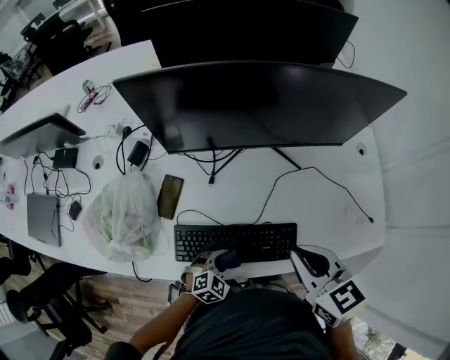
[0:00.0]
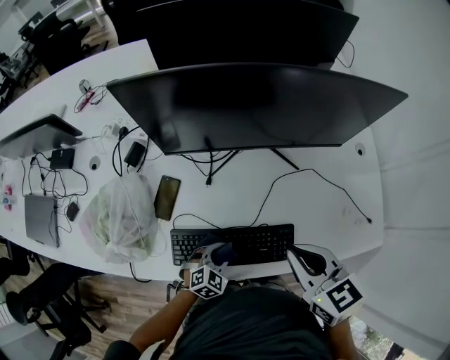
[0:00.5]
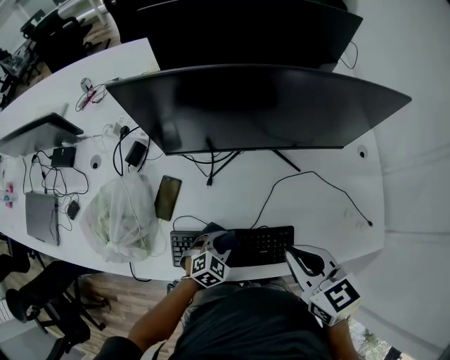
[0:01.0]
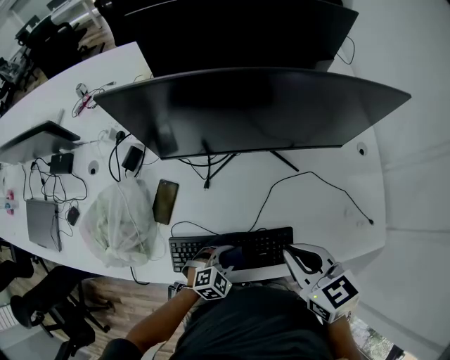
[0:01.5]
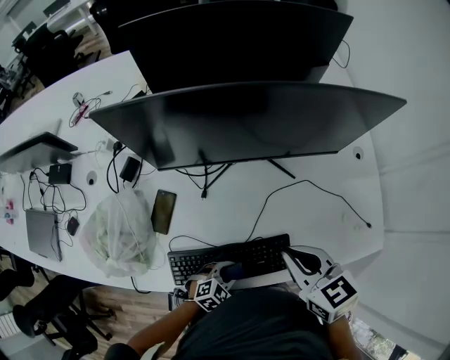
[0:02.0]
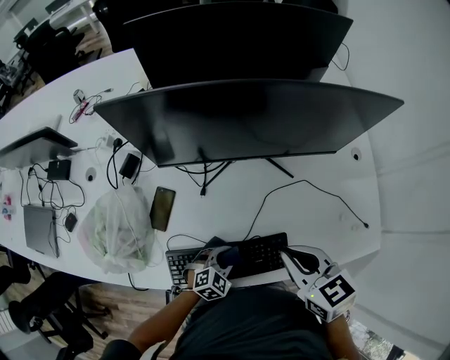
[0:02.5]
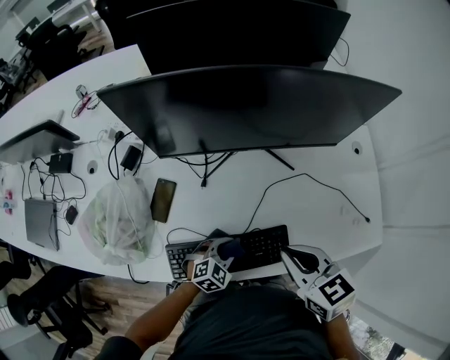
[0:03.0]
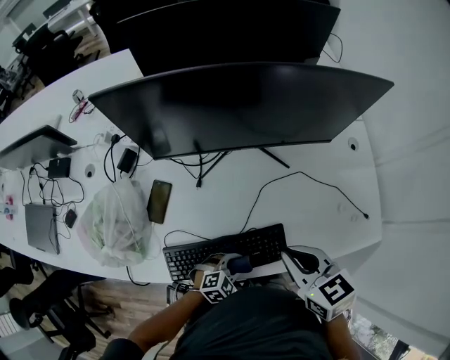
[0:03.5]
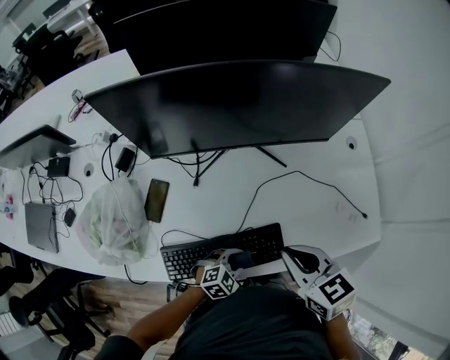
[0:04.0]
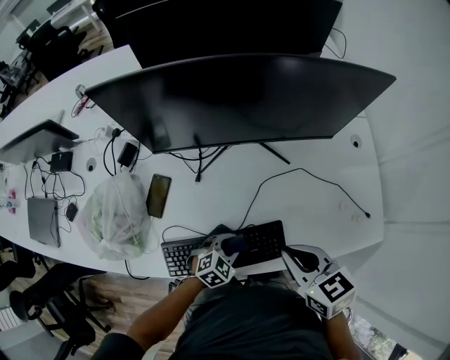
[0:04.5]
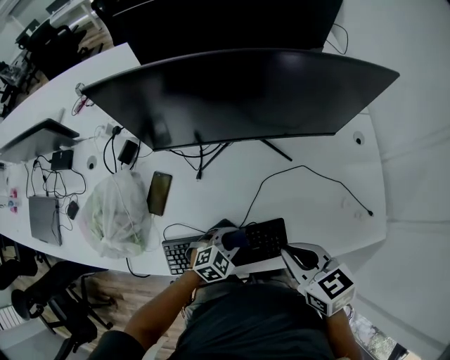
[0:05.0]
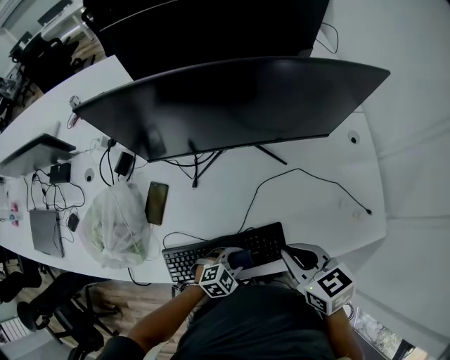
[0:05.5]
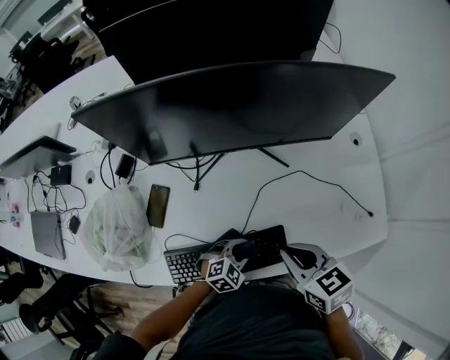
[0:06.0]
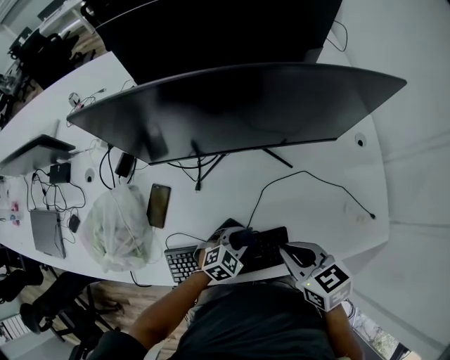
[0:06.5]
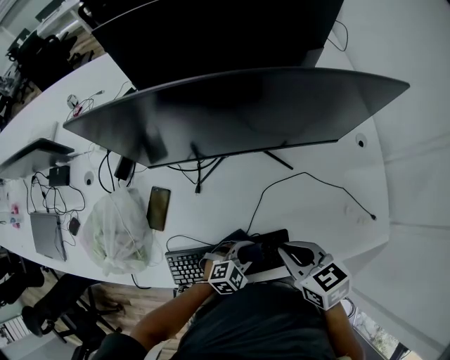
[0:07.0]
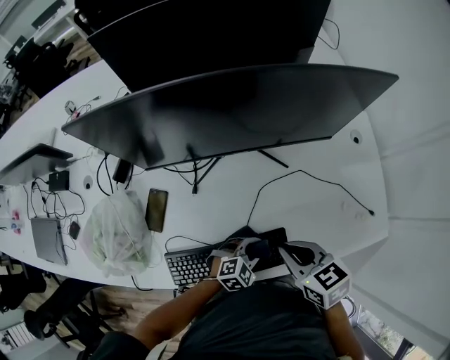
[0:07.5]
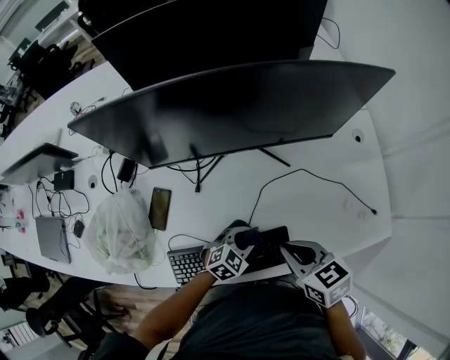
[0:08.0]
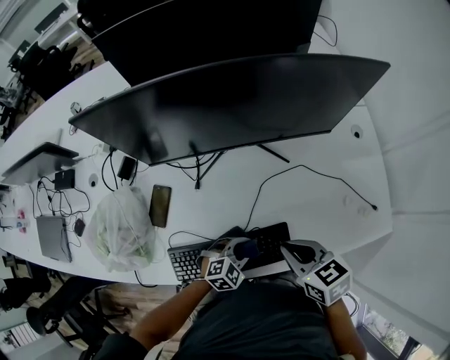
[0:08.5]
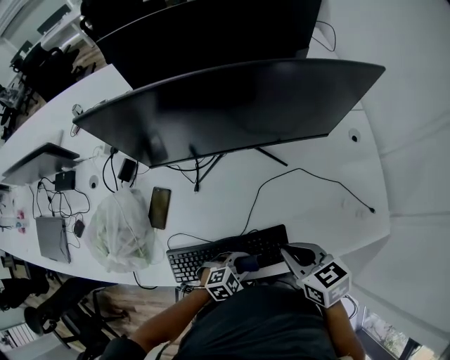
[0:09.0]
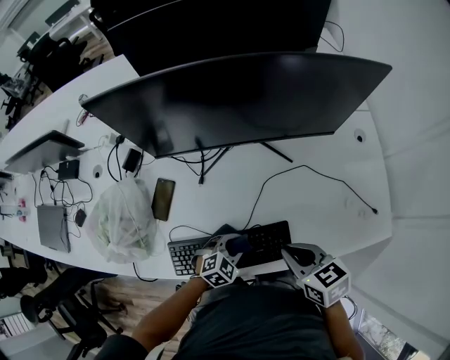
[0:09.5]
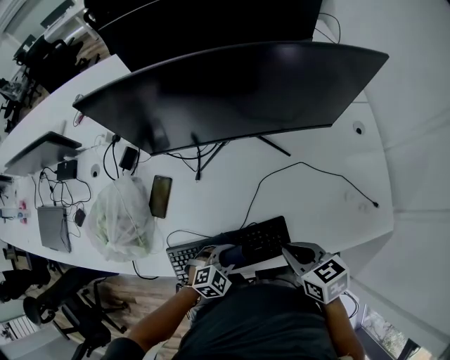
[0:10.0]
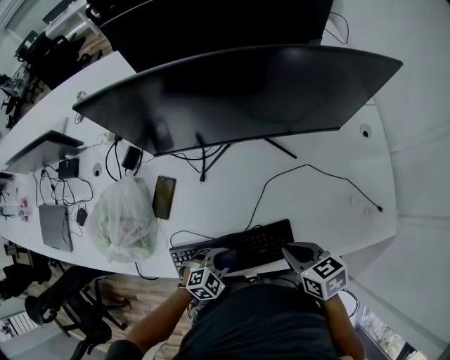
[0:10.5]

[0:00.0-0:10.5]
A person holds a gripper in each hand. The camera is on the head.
0:00.0 to 0:02.0: The left gripper goes forward and returns, about 5 cm each way.
0:02.0 to 0:04.0: The right gripper ends up roughly 5 cm from where it was. The left gripper shifts some 5 cm to the right.
0:04.0 to 0:06.5: The left gripper swings forward and backward, roughly 10 cm each way, with 2 reversals. The right gripper changes place by approximately 5 cm.
0:06.5 to 0:08.5: The left gripper moves some 5 cm.
0:08.5 to 0:10.5: The right gripper shifts by some 5 cm. The left gripper changes place by approximately 10 cm.

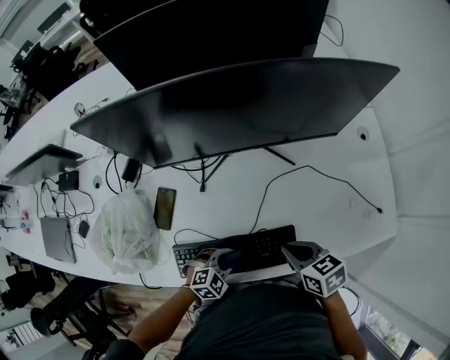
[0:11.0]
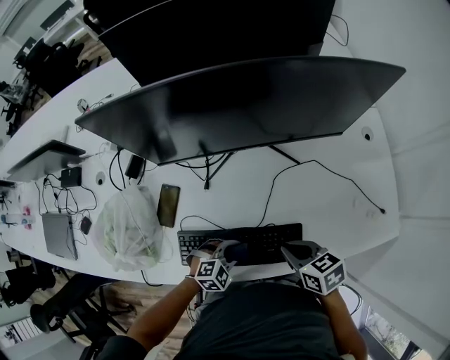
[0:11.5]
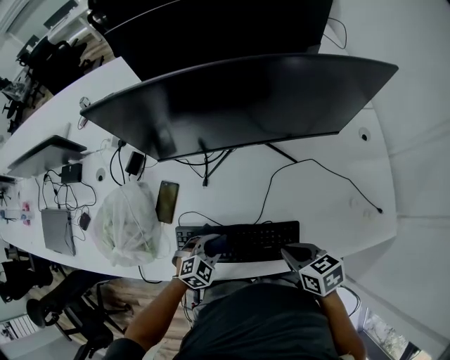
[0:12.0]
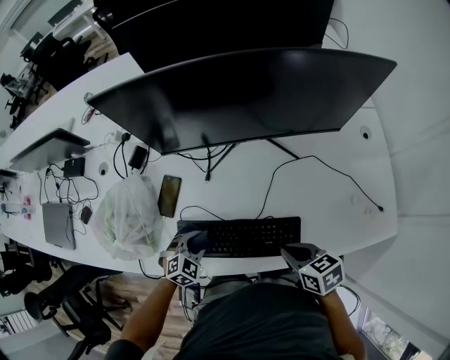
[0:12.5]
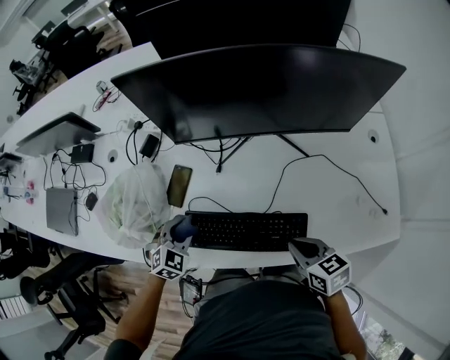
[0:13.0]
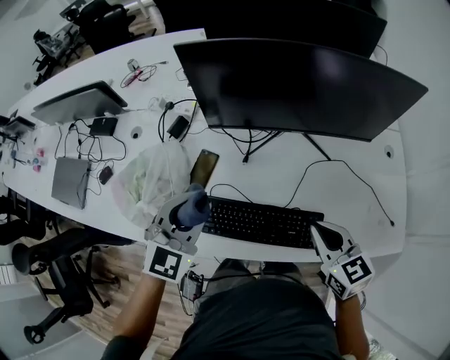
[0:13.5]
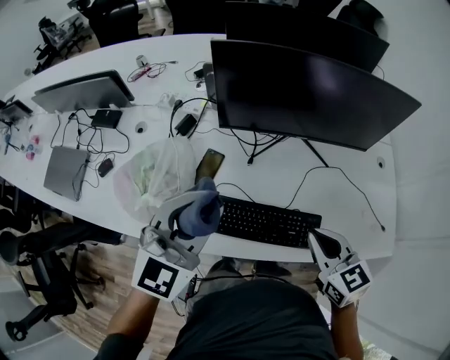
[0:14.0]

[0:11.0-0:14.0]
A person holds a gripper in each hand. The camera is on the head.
0:11.0 to 0:12.5: The left gripper changes place by approximately 10 cm, and rotates some 20 degrees.
0:12.5 to 0:14.0: The left gripper goes approximately 35 cm upward, and angles its fingers upward, by roughly 40 degrees, while the right gripper is displaced upward and to the left by roughly 15 cm, and swivels some 30 degrees.

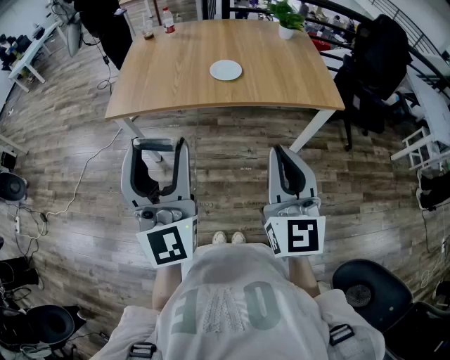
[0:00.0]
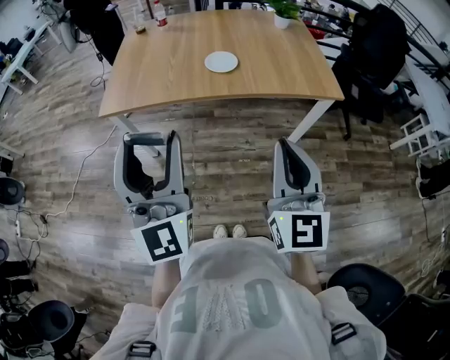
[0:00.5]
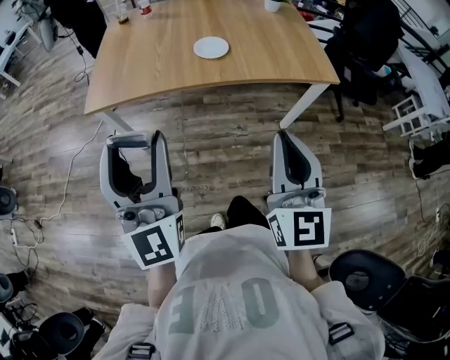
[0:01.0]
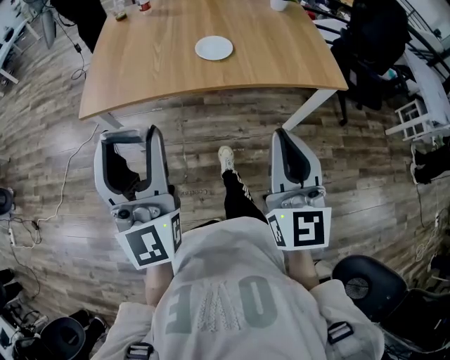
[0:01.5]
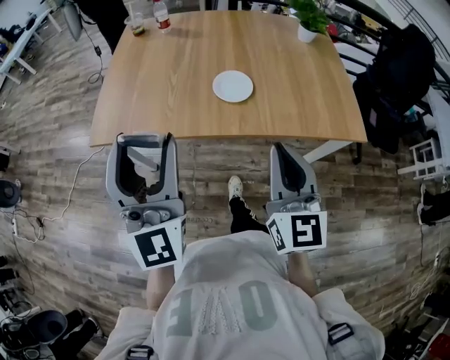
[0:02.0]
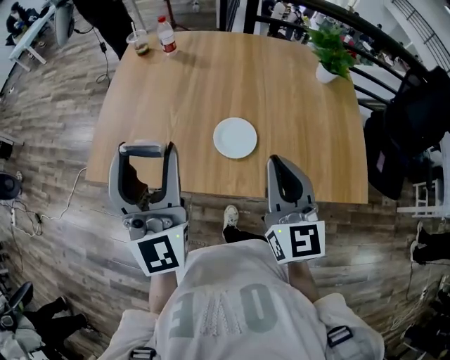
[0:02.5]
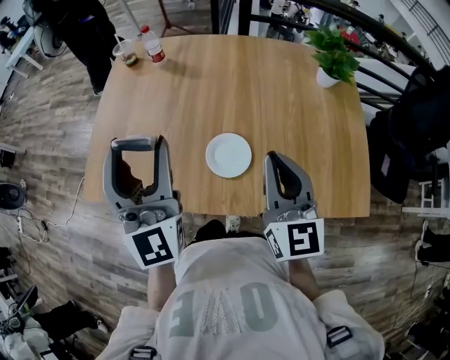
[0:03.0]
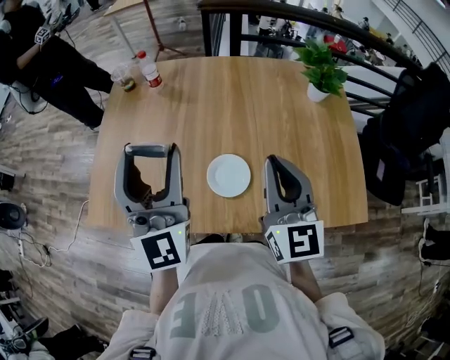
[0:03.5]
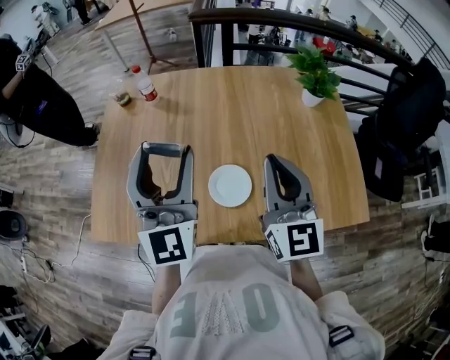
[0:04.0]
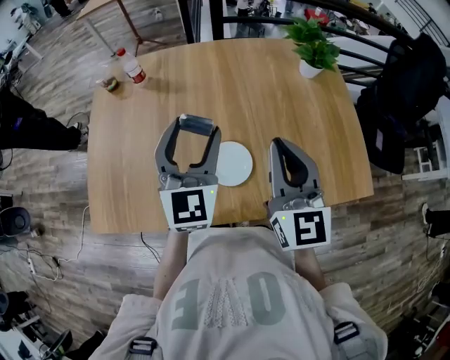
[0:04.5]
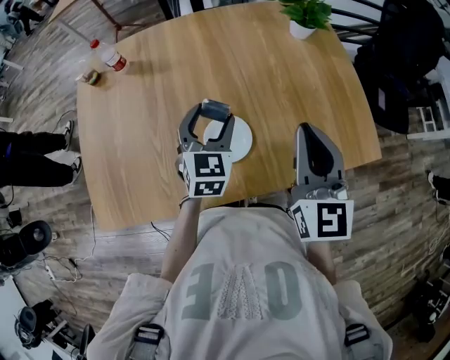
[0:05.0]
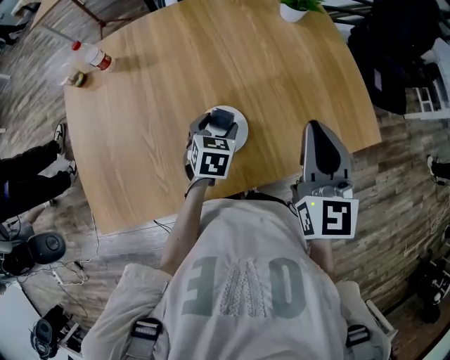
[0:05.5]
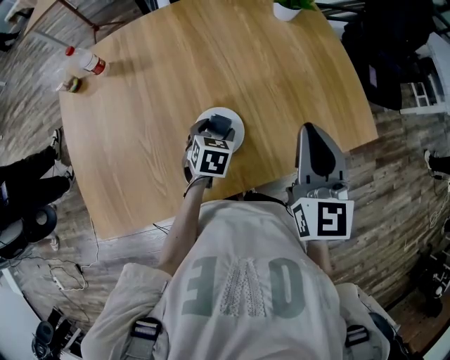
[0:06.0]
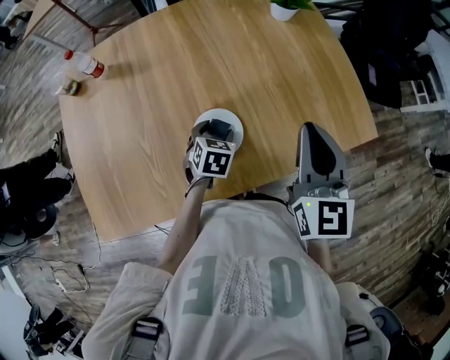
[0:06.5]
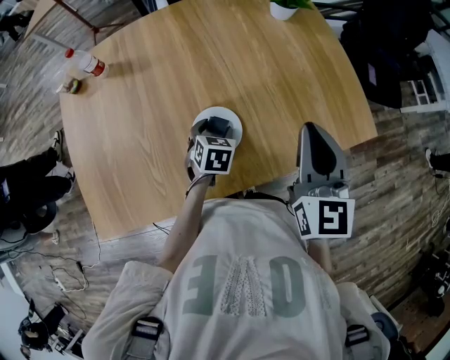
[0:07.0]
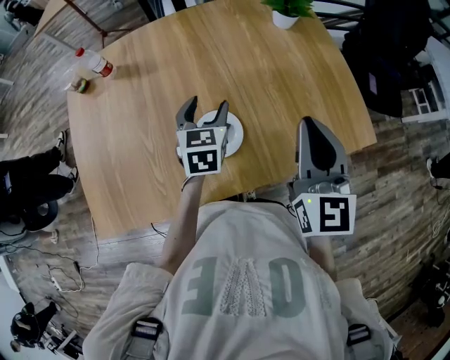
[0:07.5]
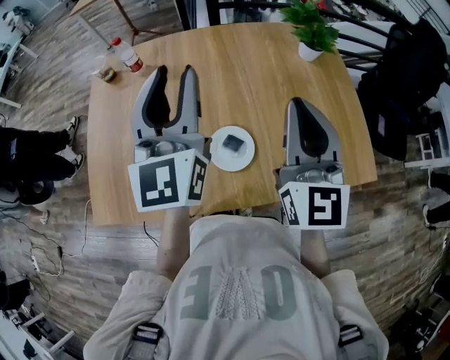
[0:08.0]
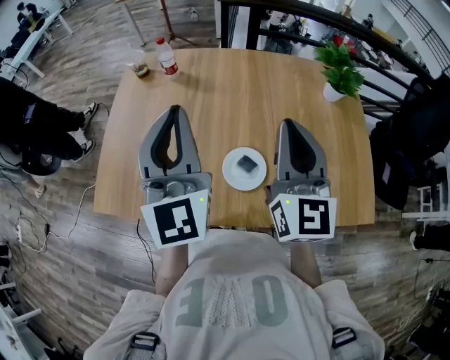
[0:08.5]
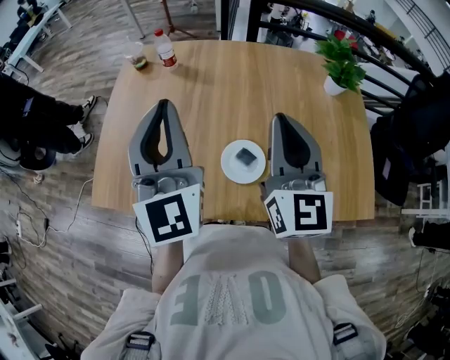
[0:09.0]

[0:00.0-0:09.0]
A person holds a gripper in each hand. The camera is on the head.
0:00.0 to 0:02.0: The two grippers go roughly 25 cm forward.
0:02.0 to 0:04.5: Both grippers move forward, some 35 cm. The left gripper turns by approximately 30 degrees.
0:04.5 to 0:07.0: The right gripper moves to the right, some 10 cm, and swivels some 20 degrees. The left gripper is displaced downward by some 30 cm, and tilts its fingers approximately 50 degrees downward.
0:07.0 to 0:09.0: The right gripper changes place by some 20 cm, and rotates approximately 30 degrees. Meanwhile the left gripper goes roughly 40 cm upward, tips its fingers upward by some 70 degrees, and closes its fingers.

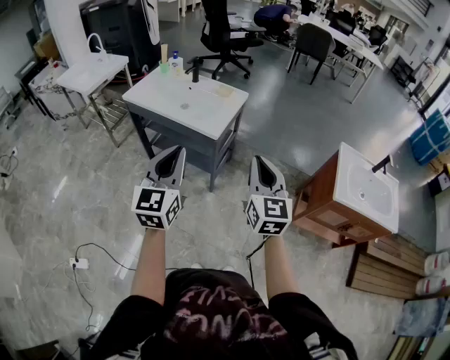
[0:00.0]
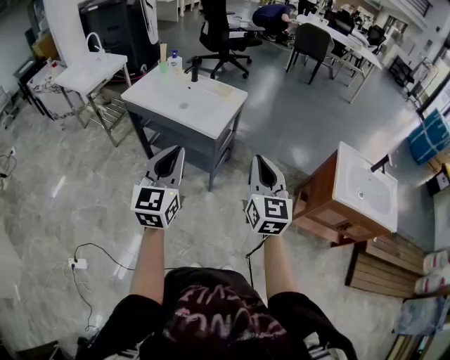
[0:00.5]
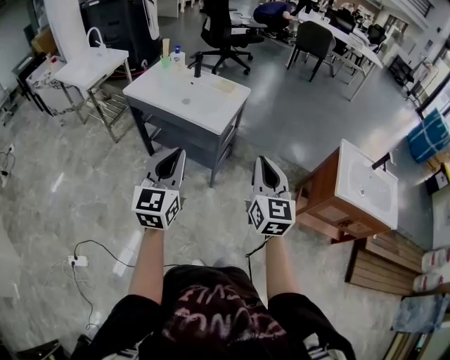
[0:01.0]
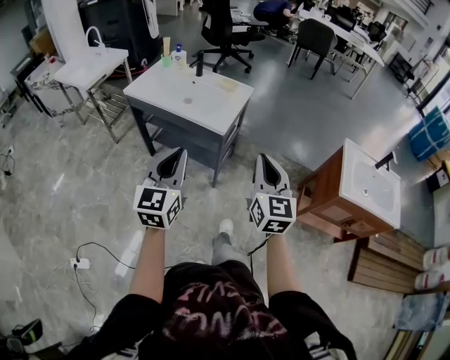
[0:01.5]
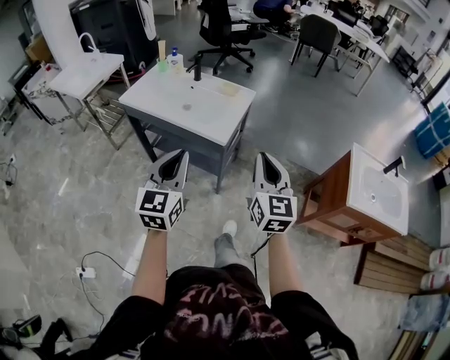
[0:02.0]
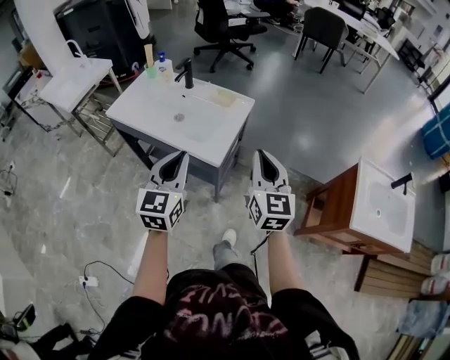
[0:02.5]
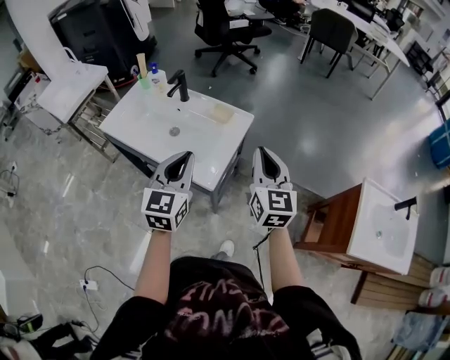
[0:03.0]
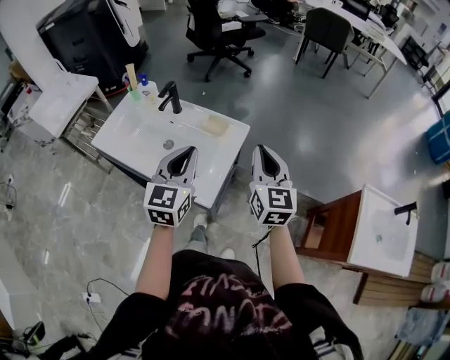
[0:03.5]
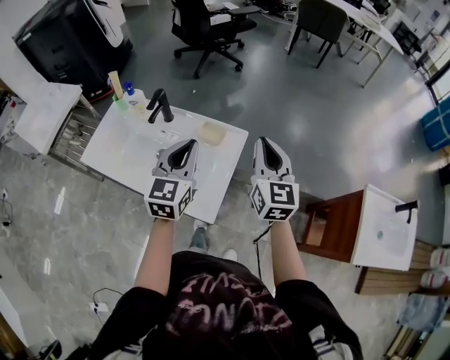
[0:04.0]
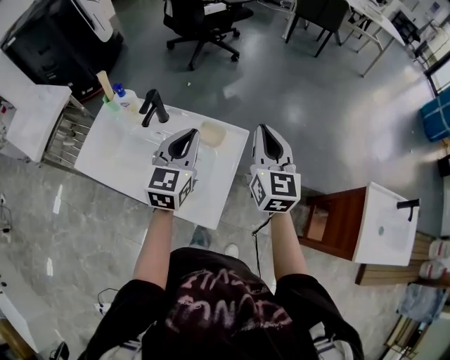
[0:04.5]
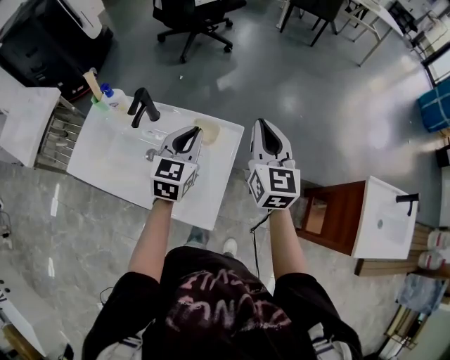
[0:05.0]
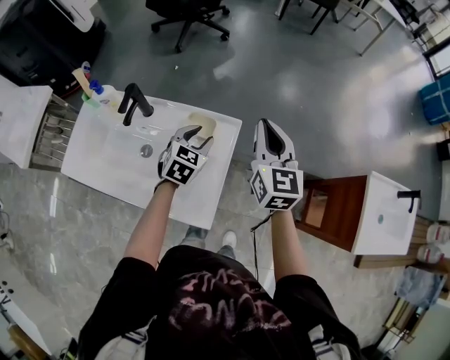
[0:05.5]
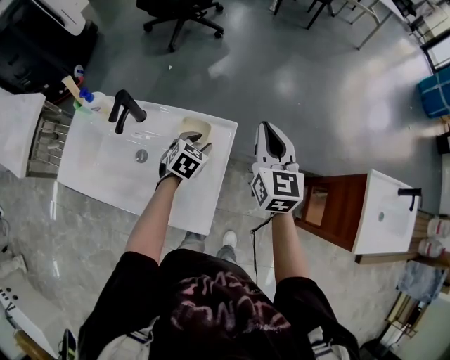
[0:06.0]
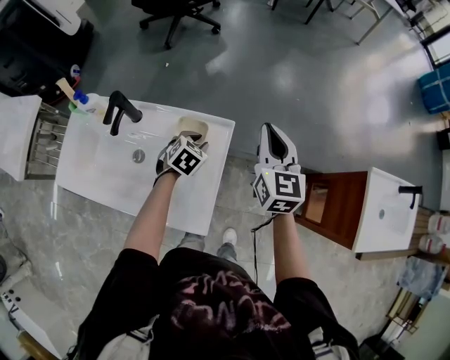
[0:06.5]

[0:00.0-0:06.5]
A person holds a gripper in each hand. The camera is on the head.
0:00.0 to 0:02.0: The right gripper shifts about 10 cm forward. The left gripper shifts approximately 10 cm forward and downward.
0:02.0 to 0:04.5: Both grippers are carried forward, roughly 50 cm.
0:04.5 to 0:06.5: The left gripper heads downward, covering about 25 cm, tilts its fingers roughly 40 degrees downward, and opens. Meanwhile the right gripper is displaced downward, forward and to the right by roughly 10 cm.
